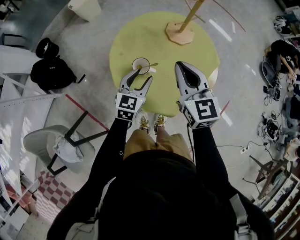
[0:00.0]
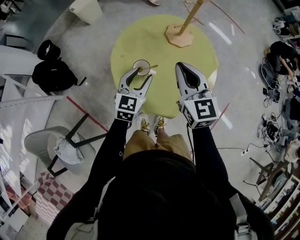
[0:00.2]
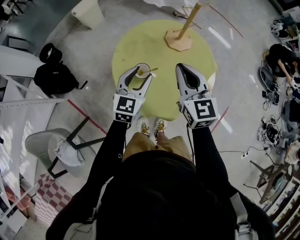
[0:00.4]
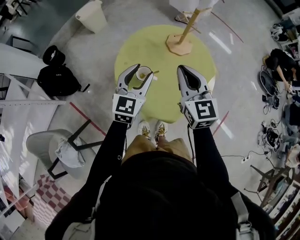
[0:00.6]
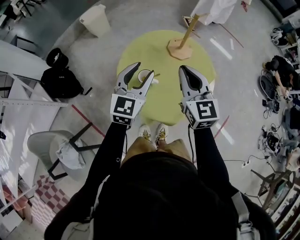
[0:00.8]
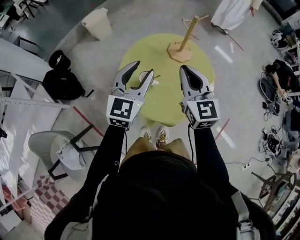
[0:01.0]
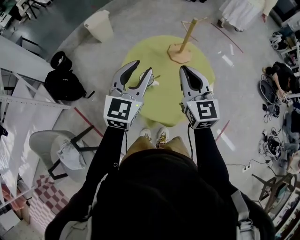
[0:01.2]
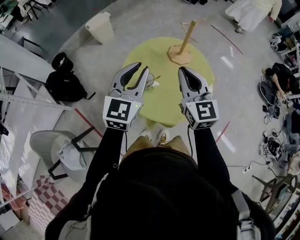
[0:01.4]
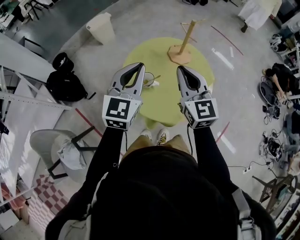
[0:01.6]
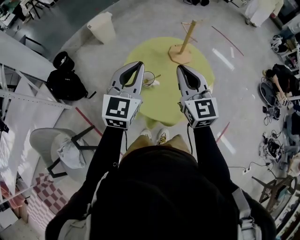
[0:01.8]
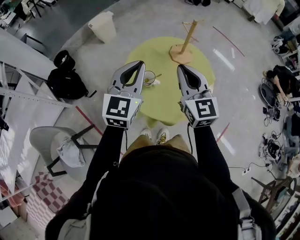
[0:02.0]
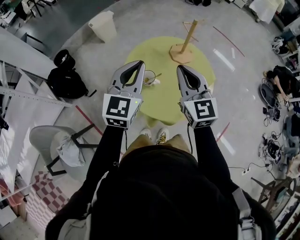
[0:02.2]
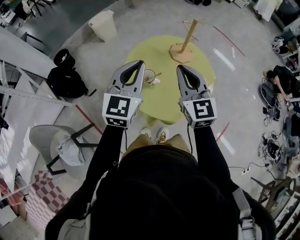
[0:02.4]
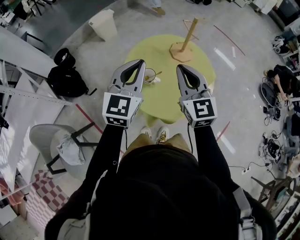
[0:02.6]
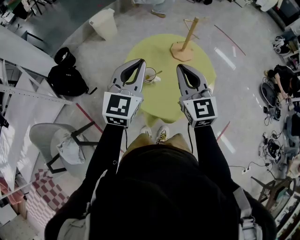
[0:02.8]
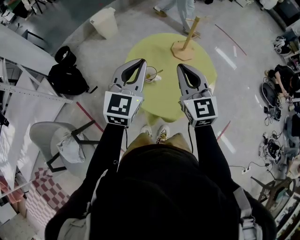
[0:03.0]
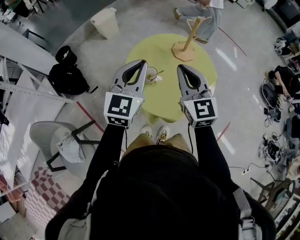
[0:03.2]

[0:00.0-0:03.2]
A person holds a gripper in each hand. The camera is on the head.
0:00.0 to 0:01.6: The right gripper is displaced upward by some 10 cm; the left gripper shifts roughly 25 cm upward, swivels roughly 20 degrees, and closes up.
0:01.6 to 0:03.2: The grippers move only a little.

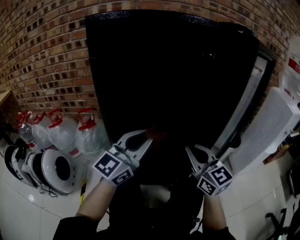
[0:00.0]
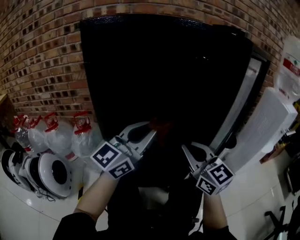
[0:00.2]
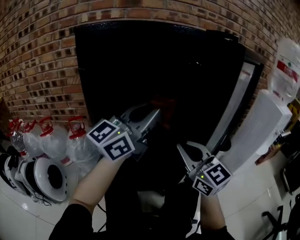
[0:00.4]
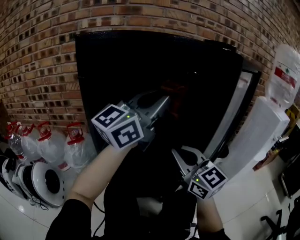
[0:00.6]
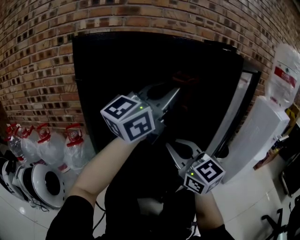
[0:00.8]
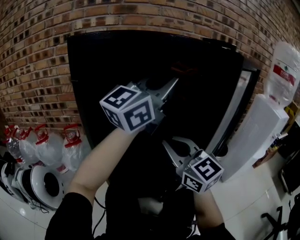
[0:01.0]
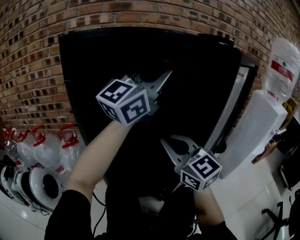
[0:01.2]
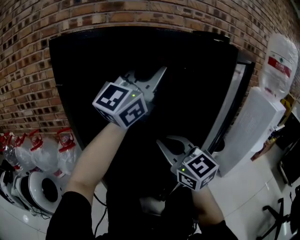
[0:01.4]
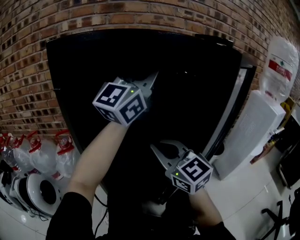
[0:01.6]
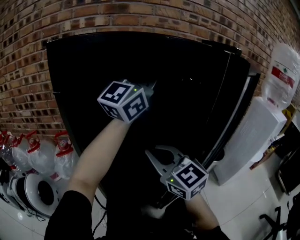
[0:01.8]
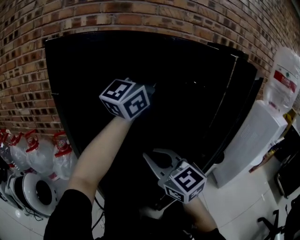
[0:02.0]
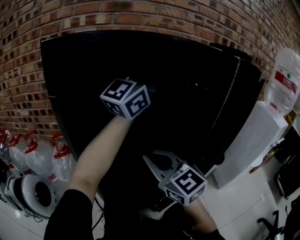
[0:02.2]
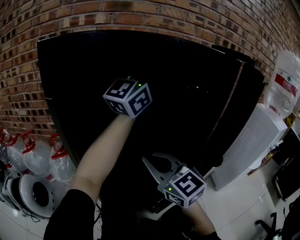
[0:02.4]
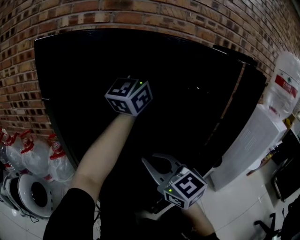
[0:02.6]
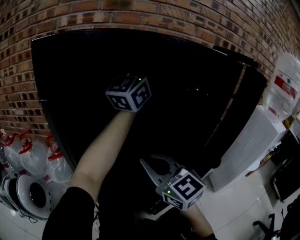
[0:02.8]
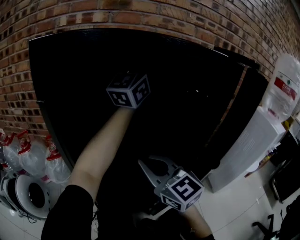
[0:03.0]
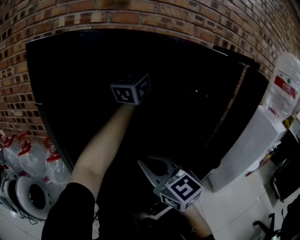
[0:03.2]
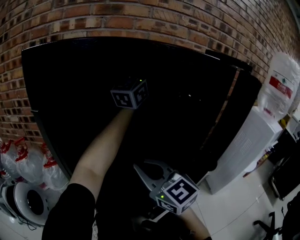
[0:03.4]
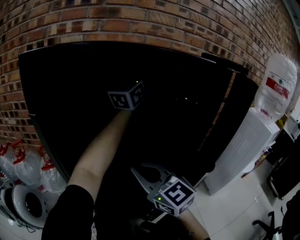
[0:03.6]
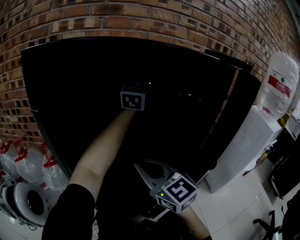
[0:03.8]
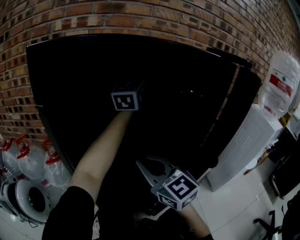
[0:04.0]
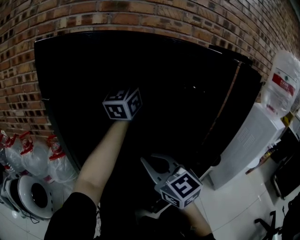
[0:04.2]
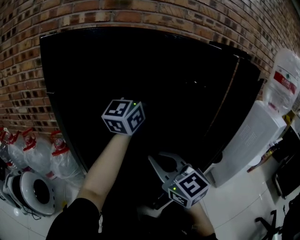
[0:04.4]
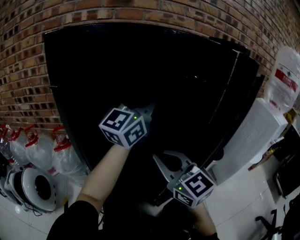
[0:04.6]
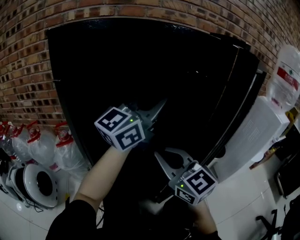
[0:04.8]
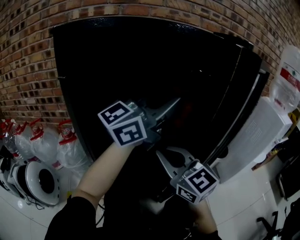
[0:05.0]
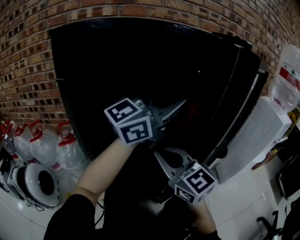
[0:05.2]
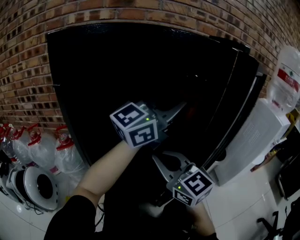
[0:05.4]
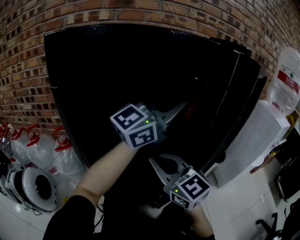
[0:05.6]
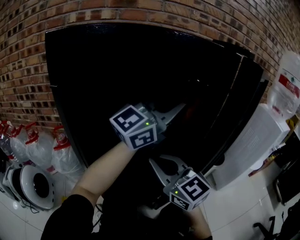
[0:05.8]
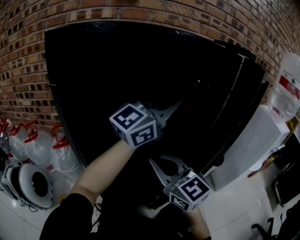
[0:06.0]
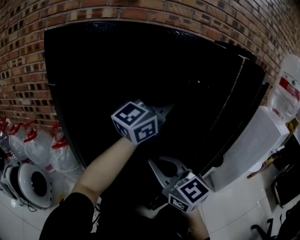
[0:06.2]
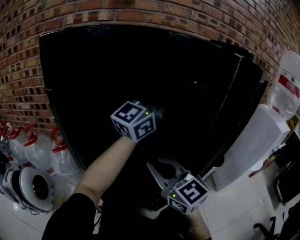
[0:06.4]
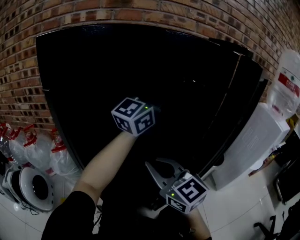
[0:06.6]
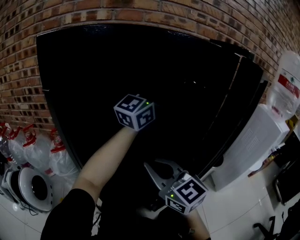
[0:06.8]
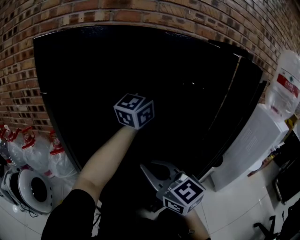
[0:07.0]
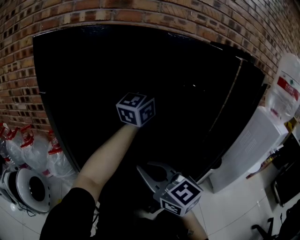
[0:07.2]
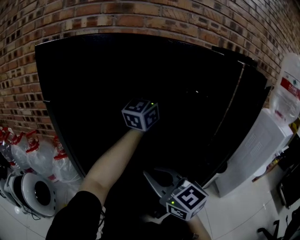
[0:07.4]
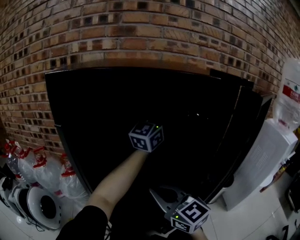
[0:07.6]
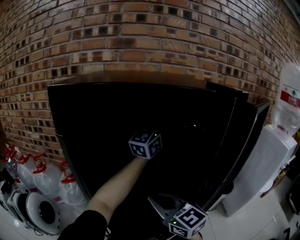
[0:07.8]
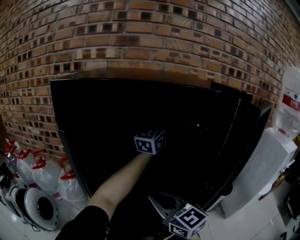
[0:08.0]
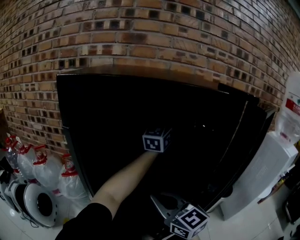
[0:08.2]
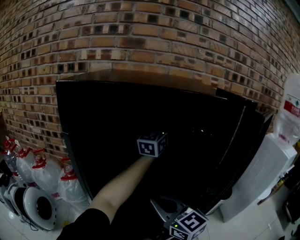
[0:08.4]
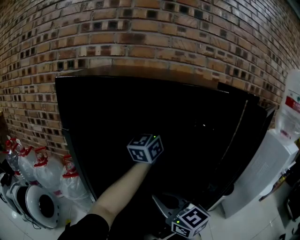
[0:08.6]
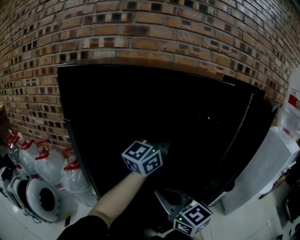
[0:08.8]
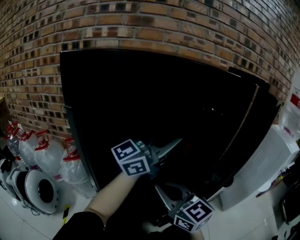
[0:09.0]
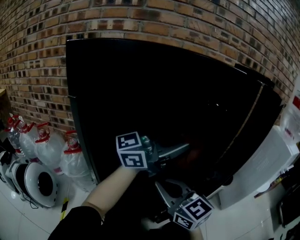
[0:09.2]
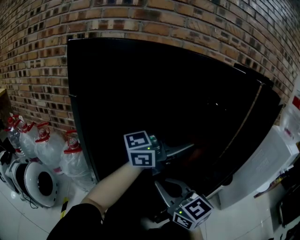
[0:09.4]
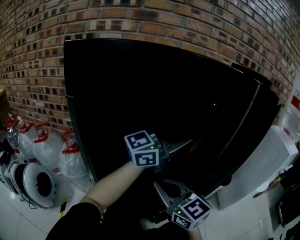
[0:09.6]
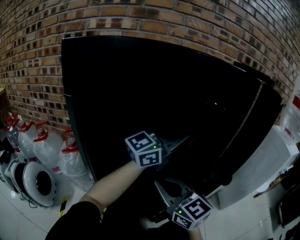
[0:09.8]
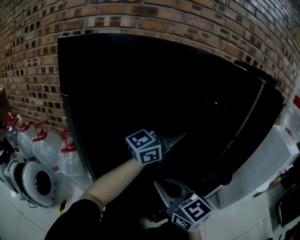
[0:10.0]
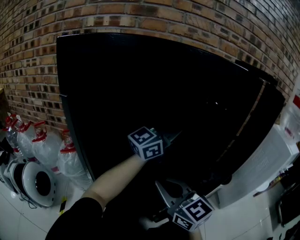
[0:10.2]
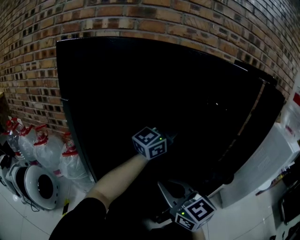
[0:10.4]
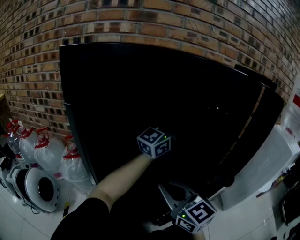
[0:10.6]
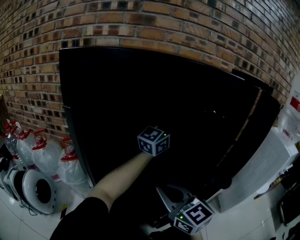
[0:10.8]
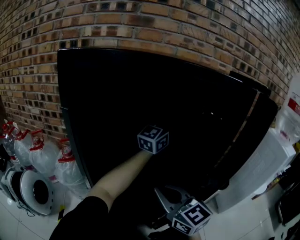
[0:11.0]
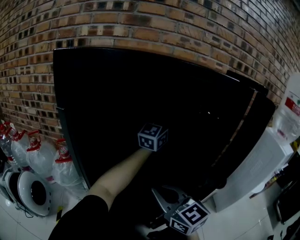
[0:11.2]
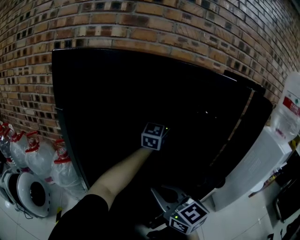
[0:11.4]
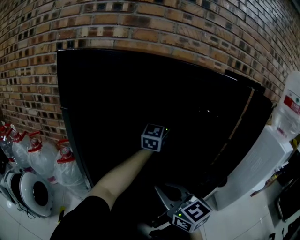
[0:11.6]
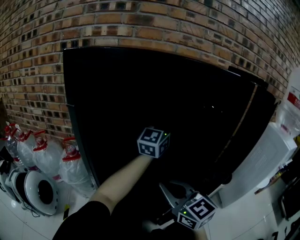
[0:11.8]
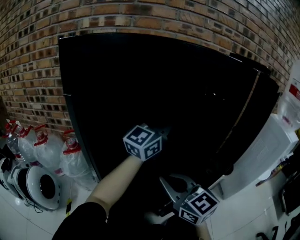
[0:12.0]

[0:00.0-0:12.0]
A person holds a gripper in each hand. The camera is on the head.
0:00.0 to 0:01.6: The left gripper is displaced upward and forward by about 30 cm, and rotates approximately 20 degrees. Meanwhile the right gripper shifts about 10 cm upward and to the left.
0:01.6 to 0:03.0: The left gripper shifts roughly 15 cm forward.
0:03.0 to 0:04.4: The left gripper travels downward by roughly 10 cm.
0:04.4 to 0:06.0: The left gripper is displaced to the right and backward by roughly 10 cm, and rotates about 30 degrees.
0:06.0 to 0:07.6: The left gripper shifts roughly 15 cm forward.
0:07.6 to 0:09.0: The left gripper is displaced backward by some 15 cm, and rotates roughly 30 degrees.
0:09.0 to 0:10.4: The left gripper shifts by about 10 cm.
0:10.4 to 0:12.0: The left gripper goes forward and returns, about 10 cm each way.

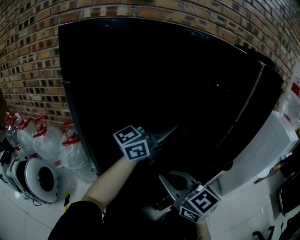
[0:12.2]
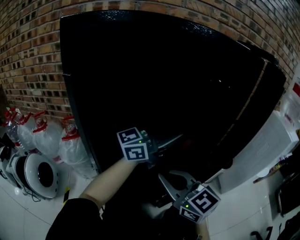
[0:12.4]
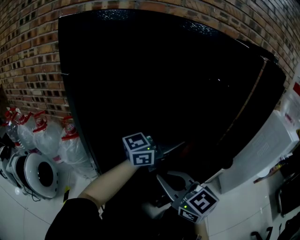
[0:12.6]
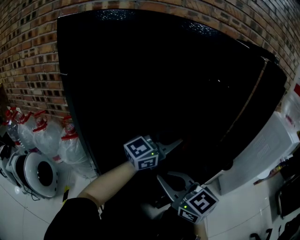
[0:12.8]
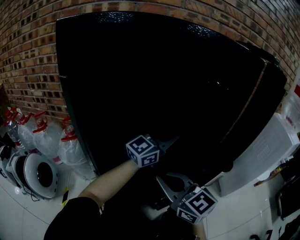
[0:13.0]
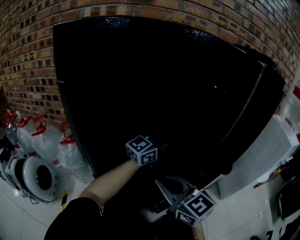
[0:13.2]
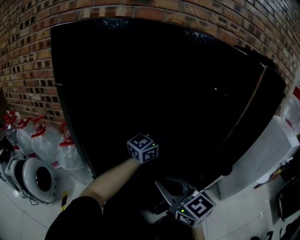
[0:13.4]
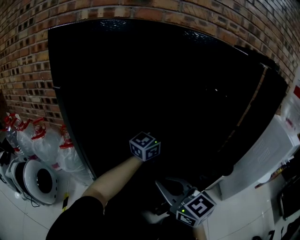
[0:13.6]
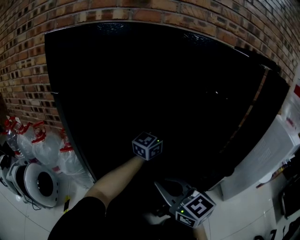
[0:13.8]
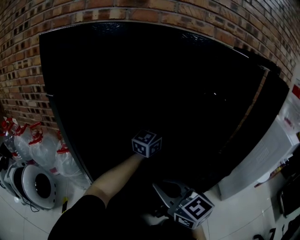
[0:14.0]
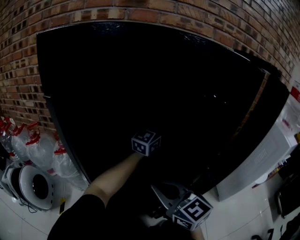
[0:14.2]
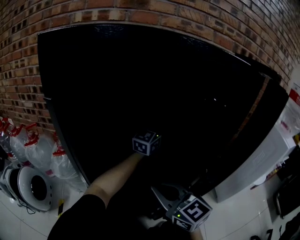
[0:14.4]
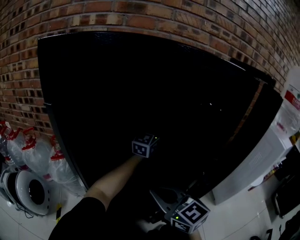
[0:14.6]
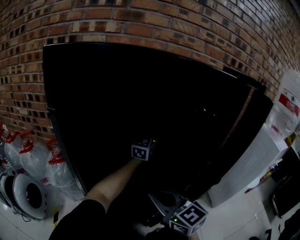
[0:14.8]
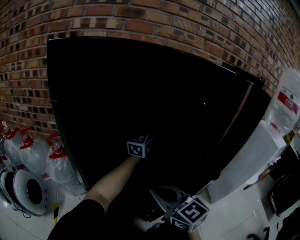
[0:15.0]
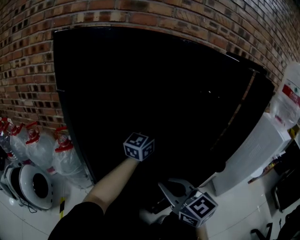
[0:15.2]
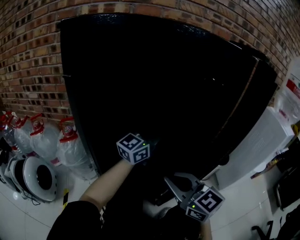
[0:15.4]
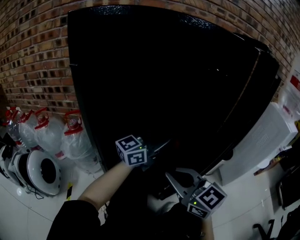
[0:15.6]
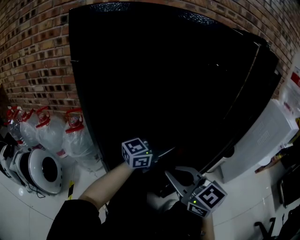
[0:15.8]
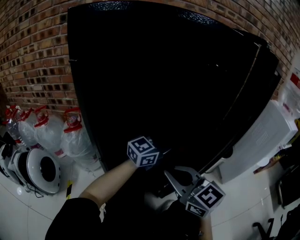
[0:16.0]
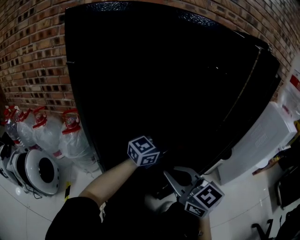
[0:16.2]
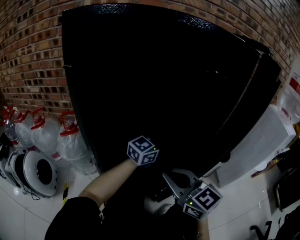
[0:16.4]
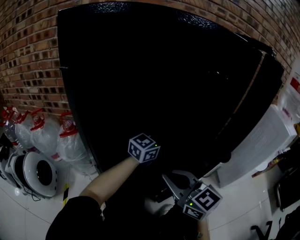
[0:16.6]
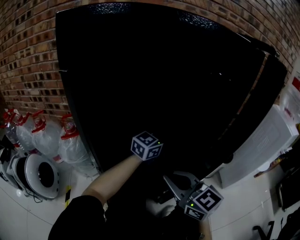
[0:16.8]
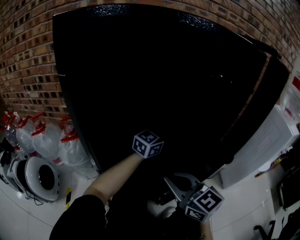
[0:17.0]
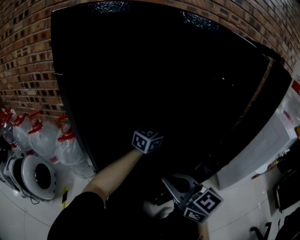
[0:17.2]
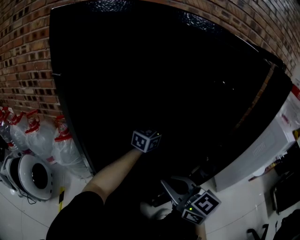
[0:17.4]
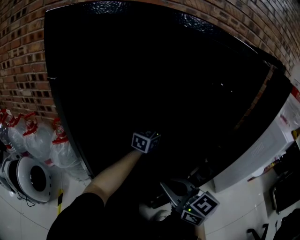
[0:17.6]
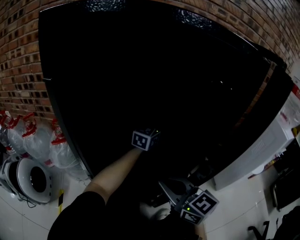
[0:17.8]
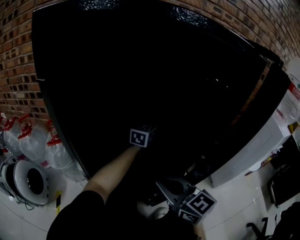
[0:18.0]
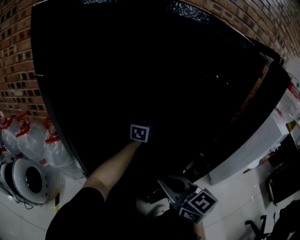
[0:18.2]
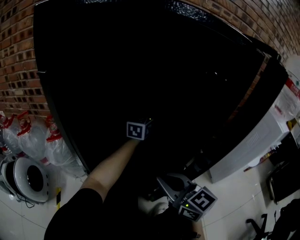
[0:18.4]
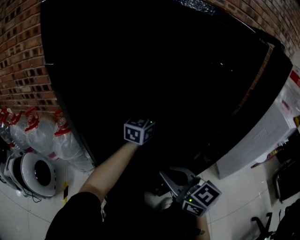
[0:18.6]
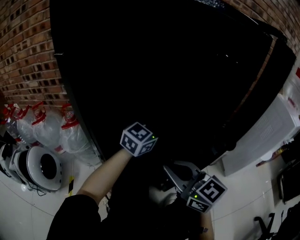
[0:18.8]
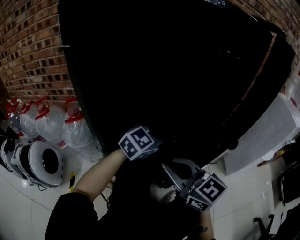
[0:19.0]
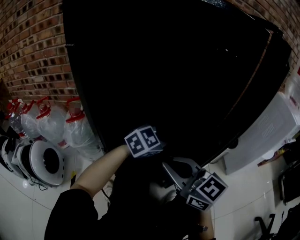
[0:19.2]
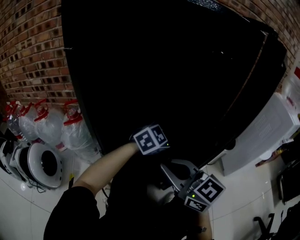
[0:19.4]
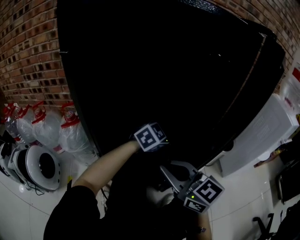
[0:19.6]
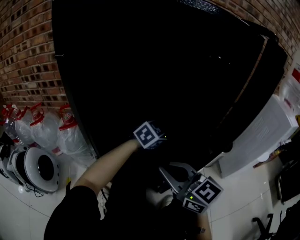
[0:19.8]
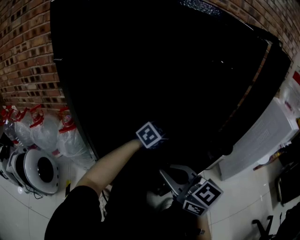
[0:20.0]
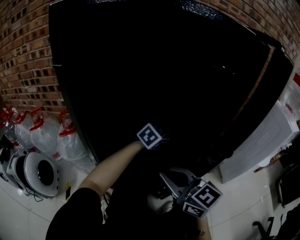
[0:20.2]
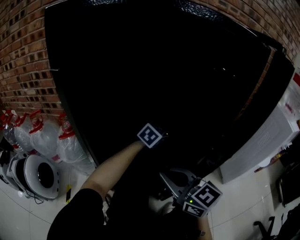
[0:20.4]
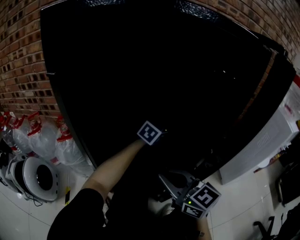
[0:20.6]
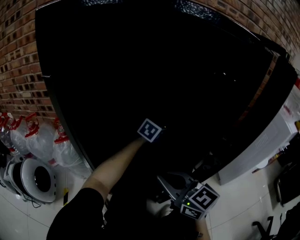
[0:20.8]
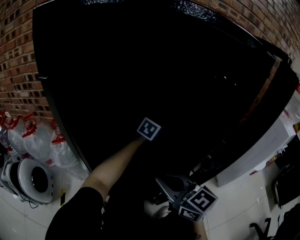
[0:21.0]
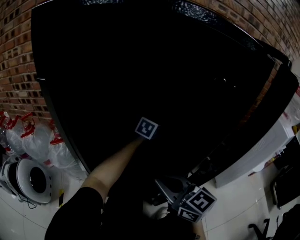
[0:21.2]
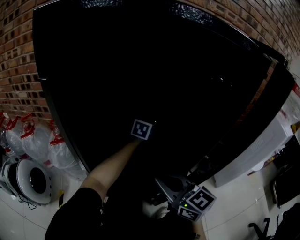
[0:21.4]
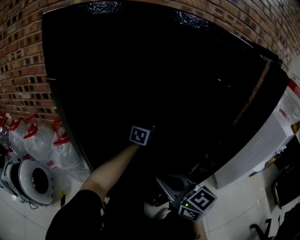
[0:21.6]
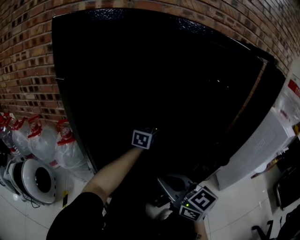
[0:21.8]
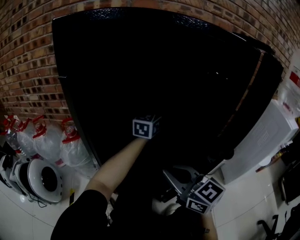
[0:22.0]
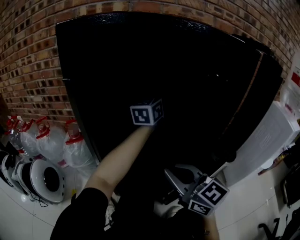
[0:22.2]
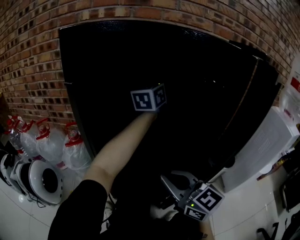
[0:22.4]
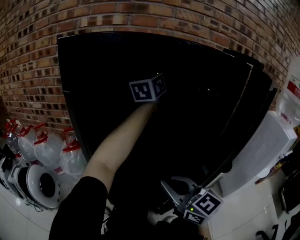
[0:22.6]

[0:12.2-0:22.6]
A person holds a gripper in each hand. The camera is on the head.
0:12.2 to 0:13.6: The left gripper is displaced forward and downward by roughly 15 cm, and rotates some 20 degrees.
0:13.6 to 0:15.2: The left gripper reaches about 10 cm forward, then returns.
0:15.2 to 0:16.6: The left gripper goes approximately 10 cm downward, backward and to the right, and changes its angle by some 20 degrees.
0:16.6 to 0:18.2: The left gripper shifts some 15 cm forward, and rotates approximately 30 degrees.
0:18.2 to 0:19.6: The right gripper changes place by approximately 5 cm; the left gripper shifts approximately 20 cm backward, and swivels approximately 50 degrees.
0:19.6 to 0:21.2: The right gripper goes some 5 cm forward; the left gripper travels forward by approximately 20 cm, and changes its angle by about 30 degrees.
0:21.2 to 0:22.6: The right gripper ends up about 5 cm from where it was. The left gripper heads upward, covering approximately 35 cm, and points its fingers roughly 40 degrees further upward.
